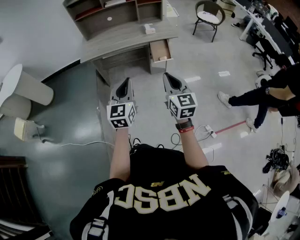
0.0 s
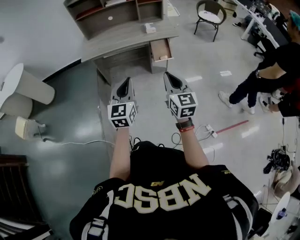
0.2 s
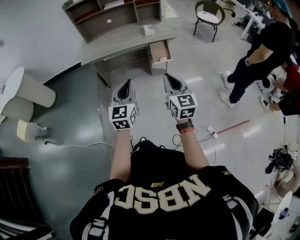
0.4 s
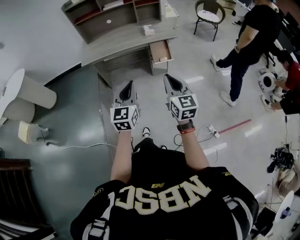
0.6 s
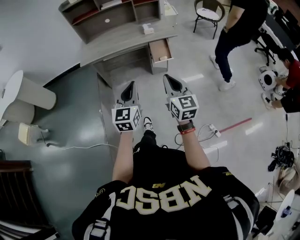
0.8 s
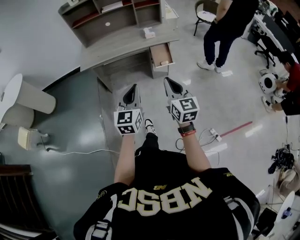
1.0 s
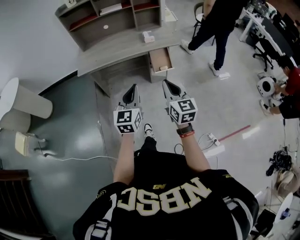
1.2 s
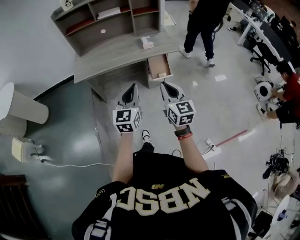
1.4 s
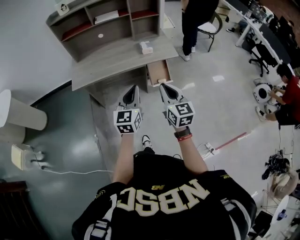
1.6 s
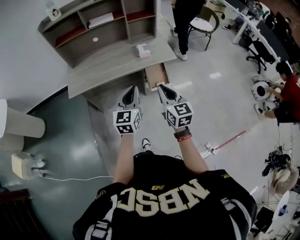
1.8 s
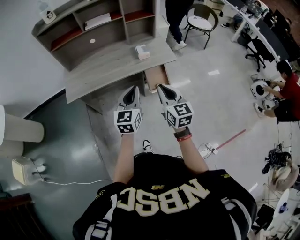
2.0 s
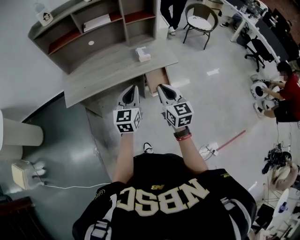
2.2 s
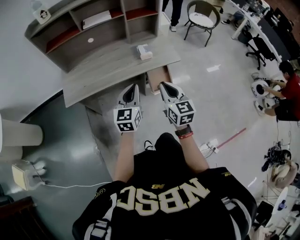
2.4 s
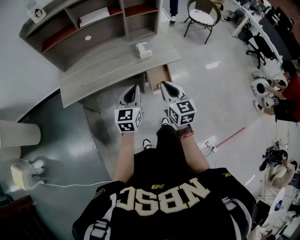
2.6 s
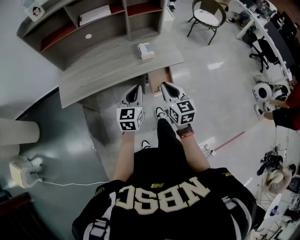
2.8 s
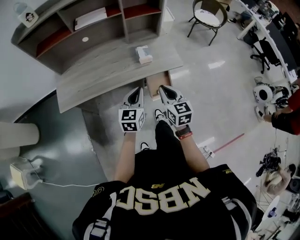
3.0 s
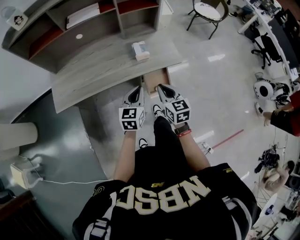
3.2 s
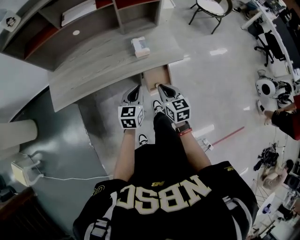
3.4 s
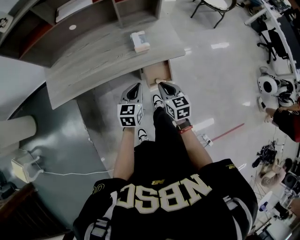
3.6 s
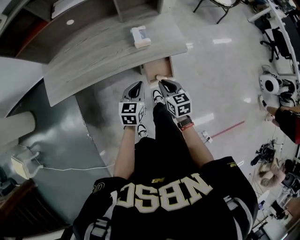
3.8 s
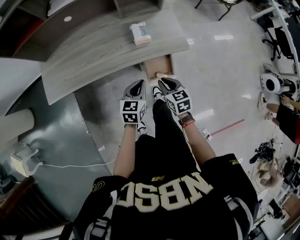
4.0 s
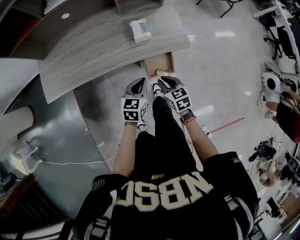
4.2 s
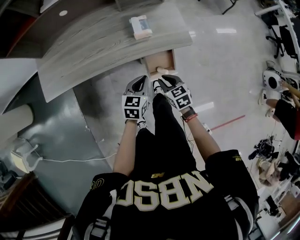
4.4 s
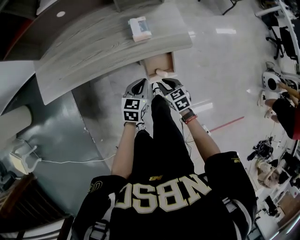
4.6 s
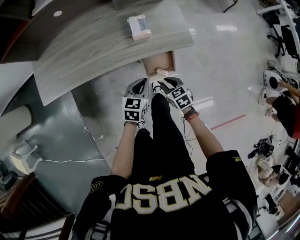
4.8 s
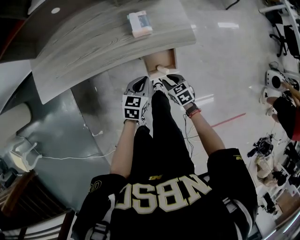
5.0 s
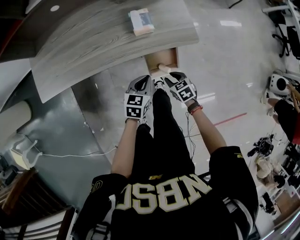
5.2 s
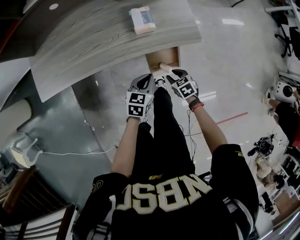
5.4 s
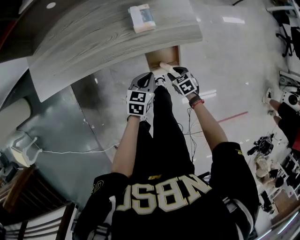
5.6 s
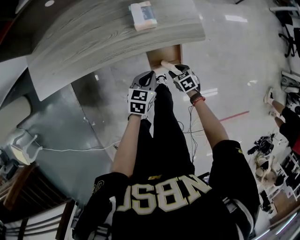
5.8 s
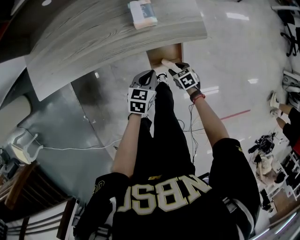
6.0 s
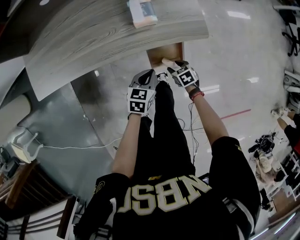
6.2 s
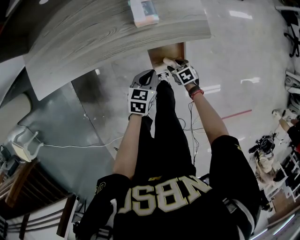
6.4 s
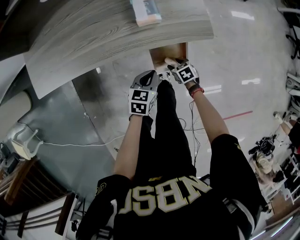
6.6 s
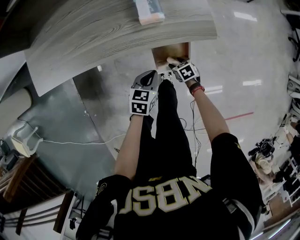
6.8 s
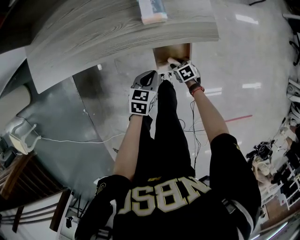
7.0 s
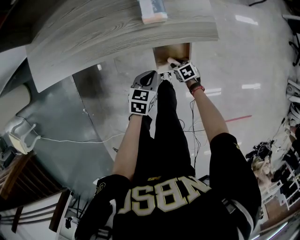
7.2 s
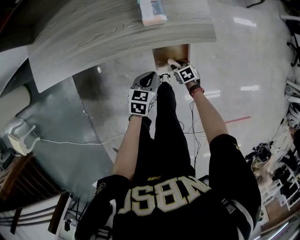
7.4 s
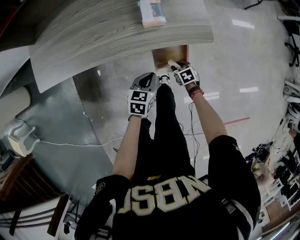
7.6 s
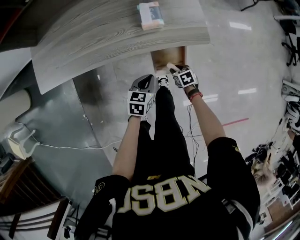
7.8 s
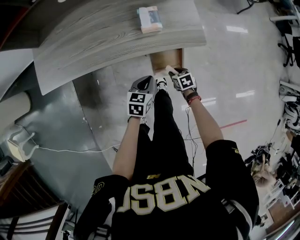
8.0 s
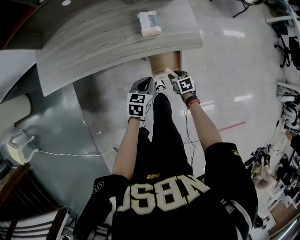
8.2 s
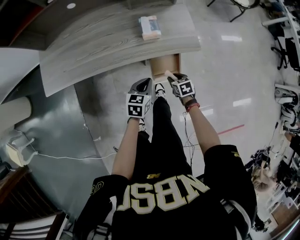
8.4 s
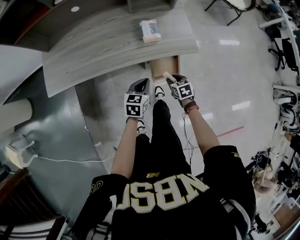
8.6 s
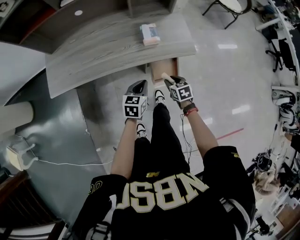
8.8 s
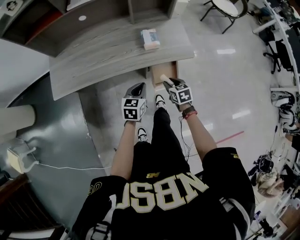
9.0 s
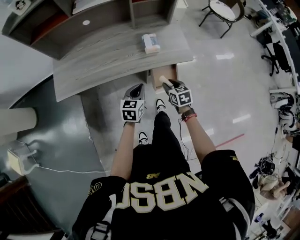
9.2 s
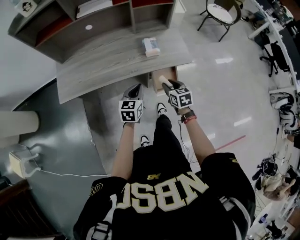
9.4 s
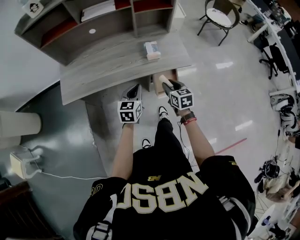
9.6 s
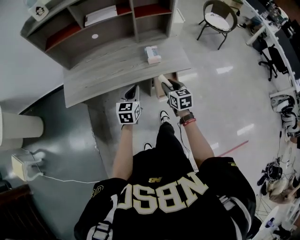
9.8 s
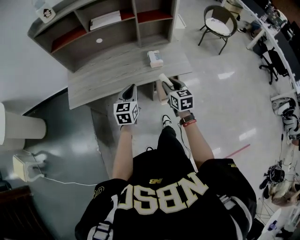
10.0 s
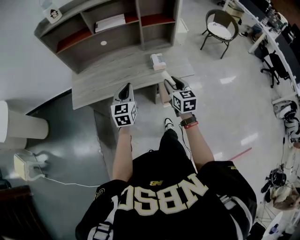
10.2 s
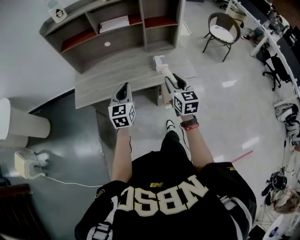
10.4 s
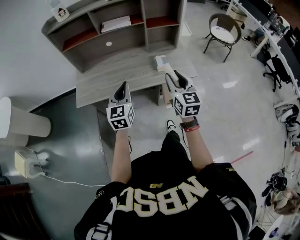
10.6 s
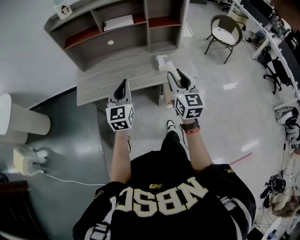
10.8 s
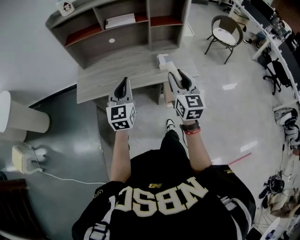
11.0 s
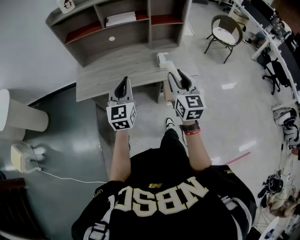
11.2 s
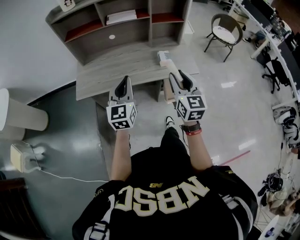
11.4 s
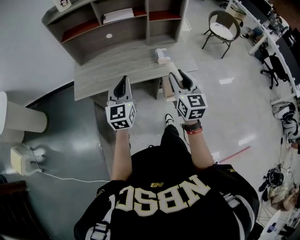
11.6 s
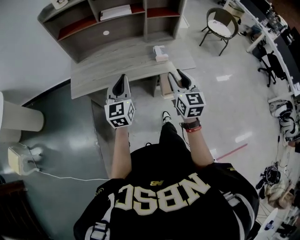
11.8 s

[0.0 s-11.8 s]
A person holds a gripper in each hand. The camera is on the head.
0.0 to 1.4 s: The two grippers go approximately 15 cm forward.
1.4 to 3.0 s: The grippers both shift forward by roughly 30 cm.
3.0 to 4.4 s: The grippers both shift downward by approximately 20 cm. The right gripper turns by some 30 degrees.
4.4 to 6.0 s: The left gripper travels downward by about 10 cm. The right gripper is displaced downward by approximately 20 cm, rotates some 20 degrees, and opens its fingers.
6.0 to 7.4 s: The grippers move only a little.
7.4 to 8.8 s: The right gripper goes about 15 cm upward. Meanwhile the left gripper heads upward, covering approximately 10 cm.
8.8 to 10.4 s: The left gripper travels upward and to the left by about 25 cm, and swivels approximately 30 degrees. Meanwhile the right gripper is displaced upward by approximately 30 cm, and tips its fingers upward by some 40 degrees.
10.4 to 11.8 s: The right gripper ends up roughly 5 cm from where it was. Meanwhile the left gripper moves roughly 5 cm.

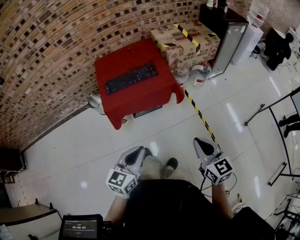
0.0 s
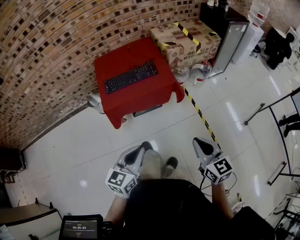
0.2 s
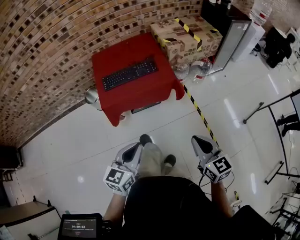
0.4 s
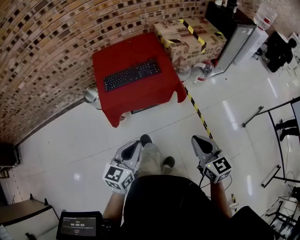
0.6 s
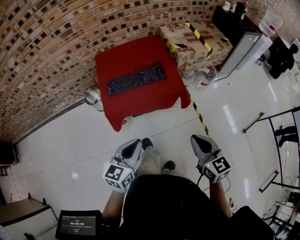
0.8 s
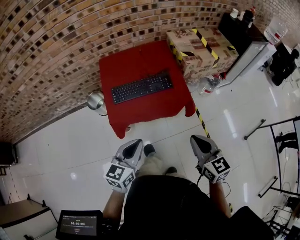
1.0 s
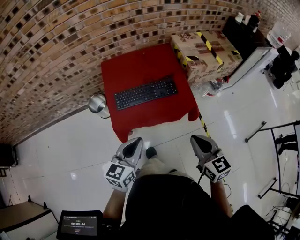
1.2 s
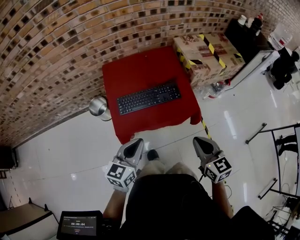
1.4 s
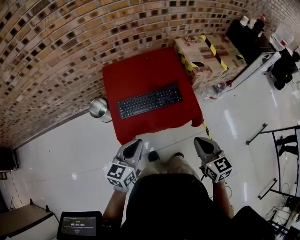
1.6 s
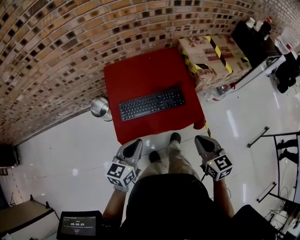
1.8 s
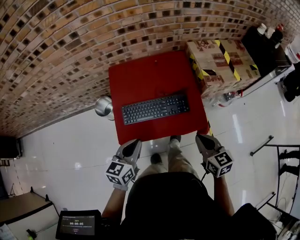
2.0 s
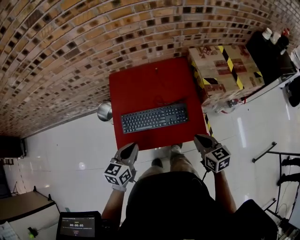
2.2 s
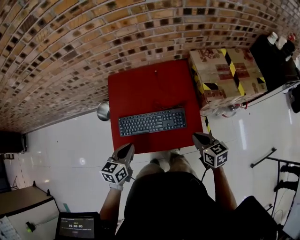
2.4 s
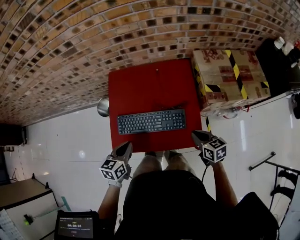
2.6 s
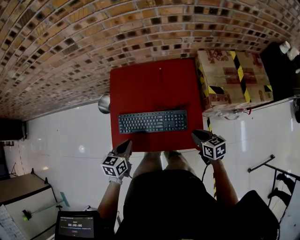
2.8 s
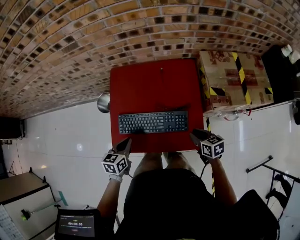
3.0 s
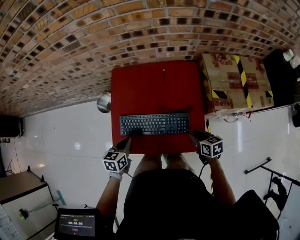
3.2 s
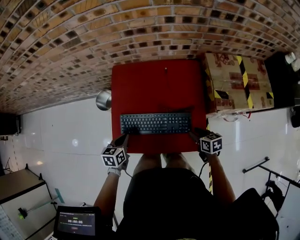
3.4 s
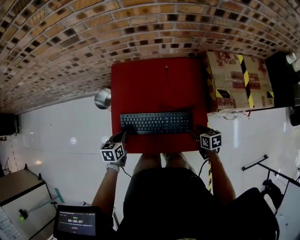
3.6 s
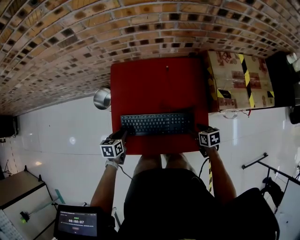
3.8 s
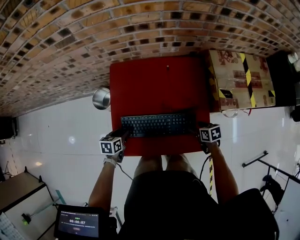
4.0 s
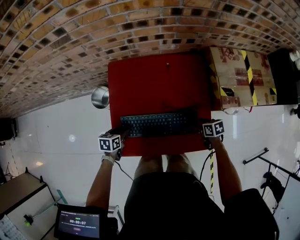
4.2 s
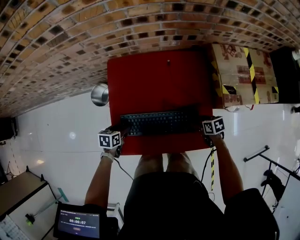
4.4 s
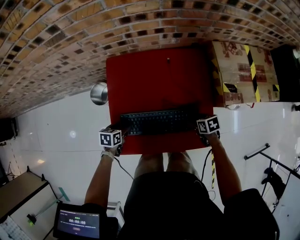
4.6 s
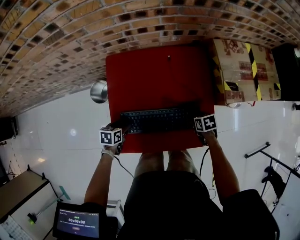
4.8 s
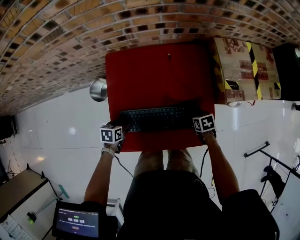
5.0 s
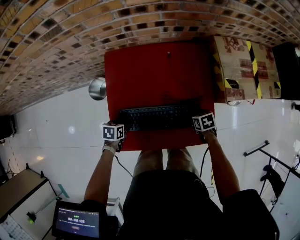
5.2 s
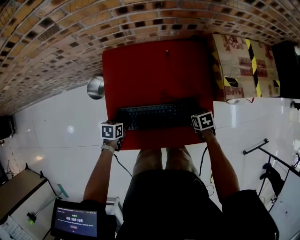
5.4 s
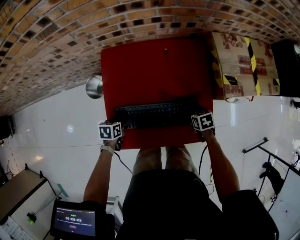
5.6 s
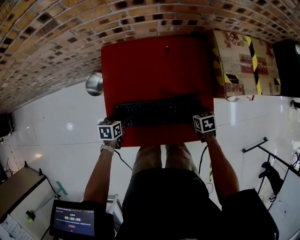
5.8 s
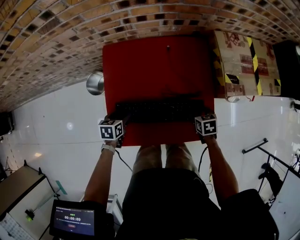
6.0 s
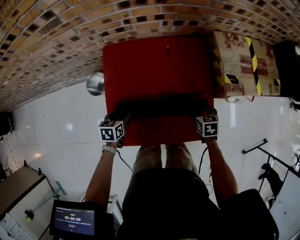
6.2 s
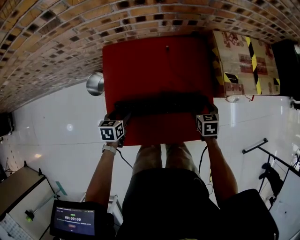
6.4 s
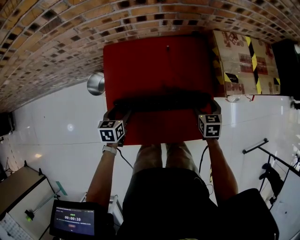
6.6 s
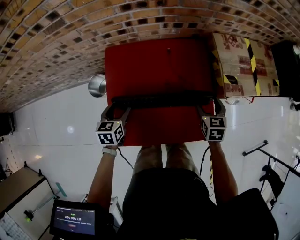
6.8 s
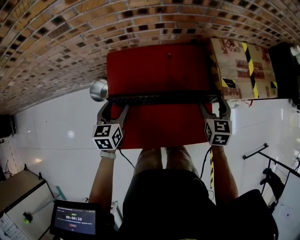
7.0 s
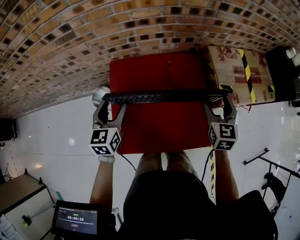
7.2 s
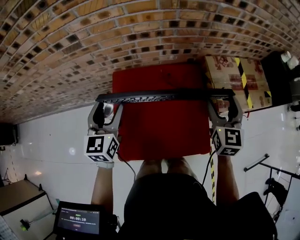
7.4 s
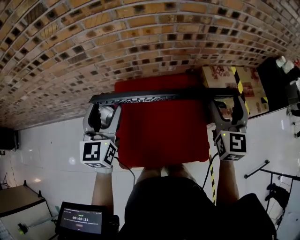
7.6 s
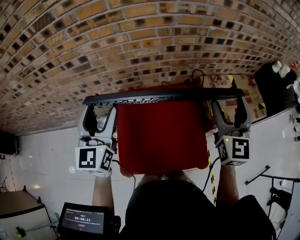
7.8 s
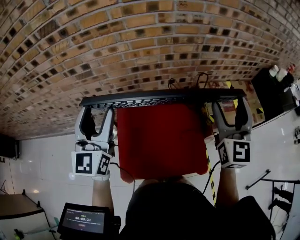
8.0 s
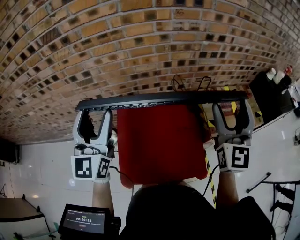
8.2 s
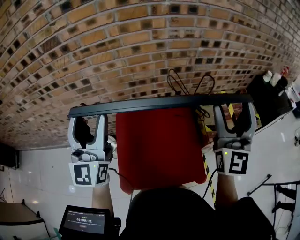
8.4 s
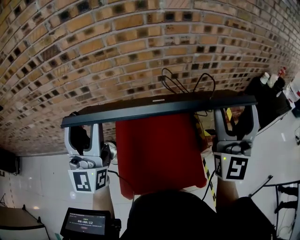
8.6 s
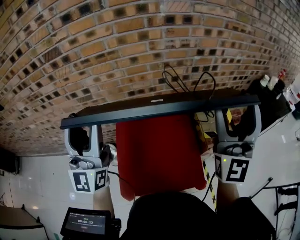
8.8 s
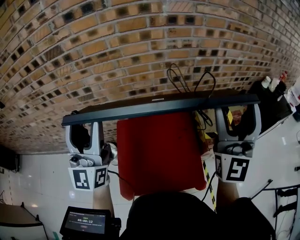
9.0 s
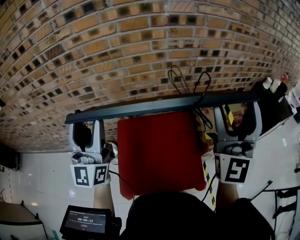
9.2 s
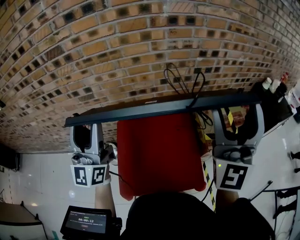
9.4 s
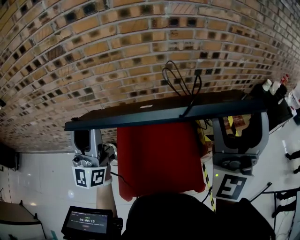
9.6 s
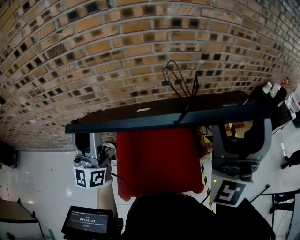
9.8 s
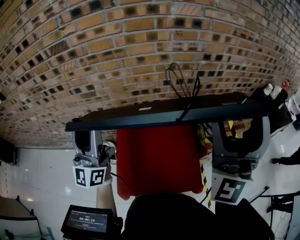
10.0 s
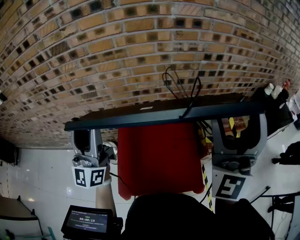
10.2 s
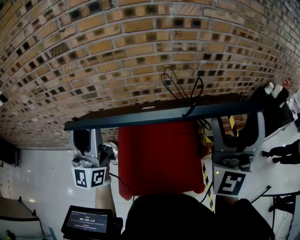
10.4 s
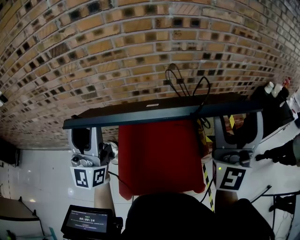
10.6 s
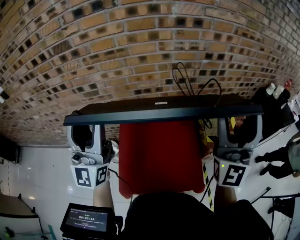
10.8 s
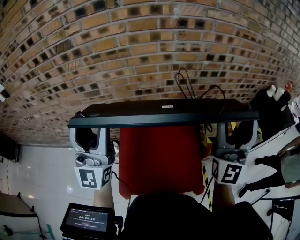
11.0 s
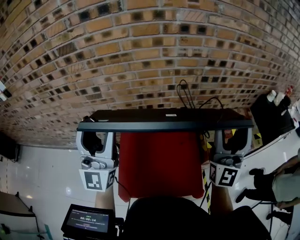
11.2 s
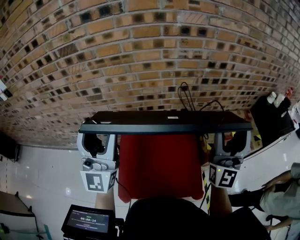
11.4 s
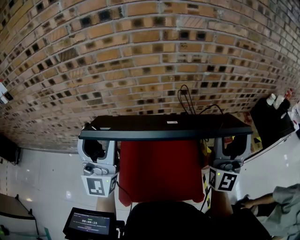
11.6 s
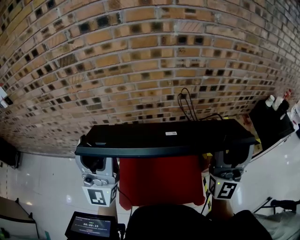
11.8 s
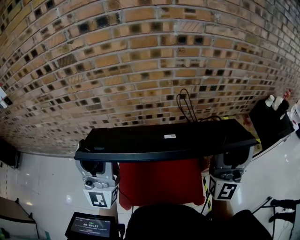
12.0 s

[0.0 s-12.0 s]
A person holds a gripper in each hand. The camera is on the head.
0.0 to 1.6 s: The two grippers go approximately 35 cm forward and to the left.
1.6 to 3.0 s: Both grippers travel together forward and downward, roughly 25 cm. The left gripper swivels about 30 degrees. Meanwhile the right gripper changes its angle by some 30 degrees.
3.0 to 4.4 s: The right gripper goes roughly 10 cm downward and forward, and opens up; the left gripper moves downward, forward and to the left, some 20 cm, rotates roughly 20 degrees, and opens up.
4.4 to 6.0 s: The right gripper swivels approximately 20 degrees.
6.0 to 7.6 s: Both grippers move upward, approximately 40 cm. The left gripper tilts its fingers approximately 50 degrees upward; the right gripper tips its fingers upward by roughly 60 degrees.
7.6 to 9.0 s: Both grippers move upward, some 25 cm. The left gripper tips its fingers upward by about 40 degrees; the right gripper points its fingers about 40 degrees further upward.
10.4 to 12.0 s: The right gripper is displaced downward and to the right by roughly 10 cm. The left gripper changes place by some 5 cm, and changes its angle by roughly 20 degrees.
